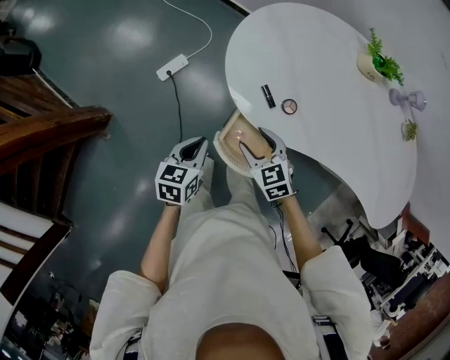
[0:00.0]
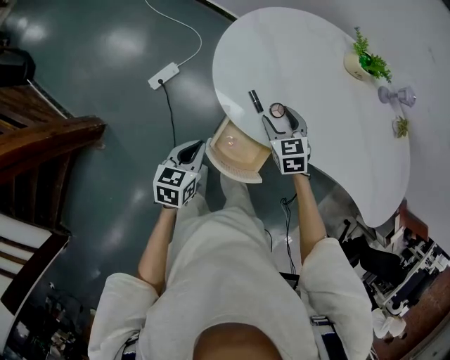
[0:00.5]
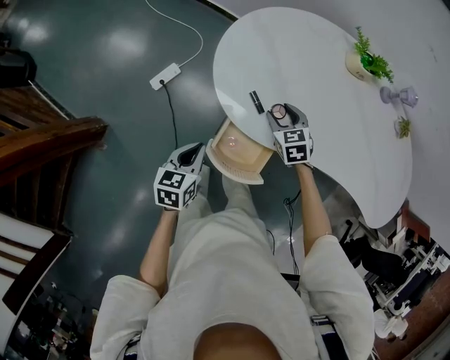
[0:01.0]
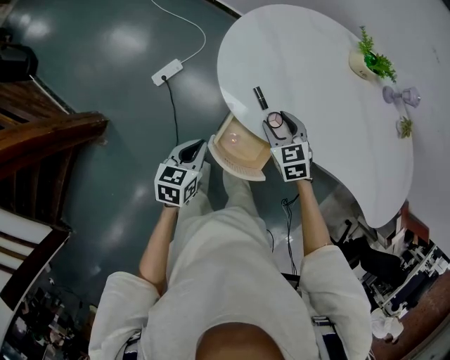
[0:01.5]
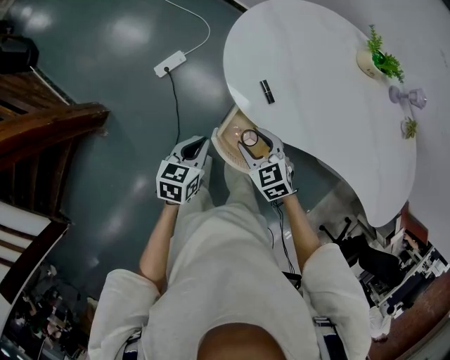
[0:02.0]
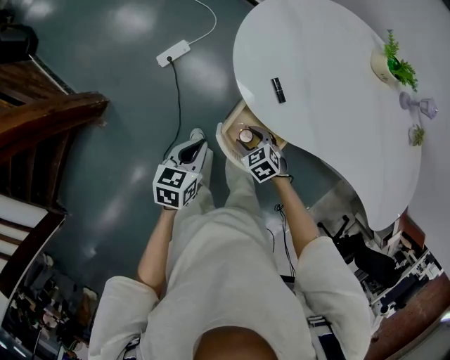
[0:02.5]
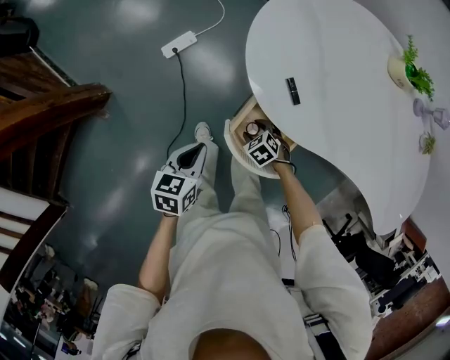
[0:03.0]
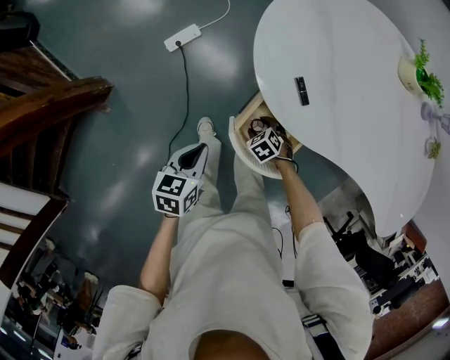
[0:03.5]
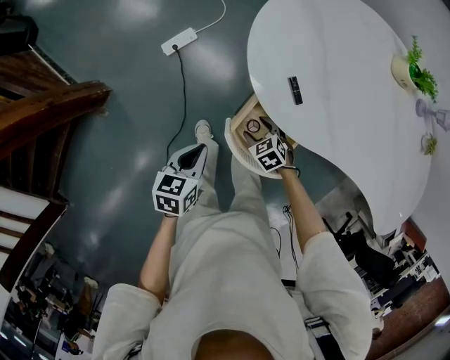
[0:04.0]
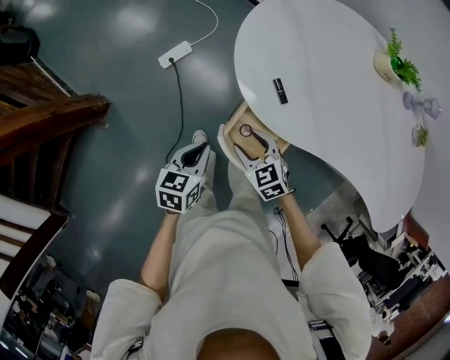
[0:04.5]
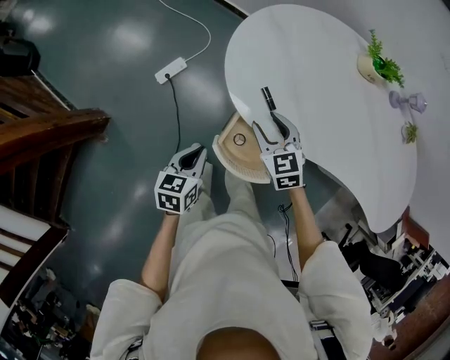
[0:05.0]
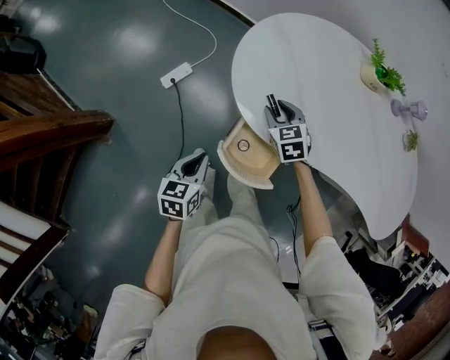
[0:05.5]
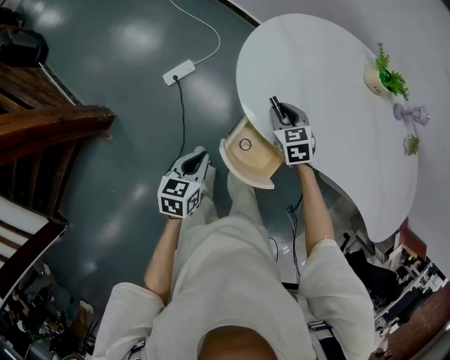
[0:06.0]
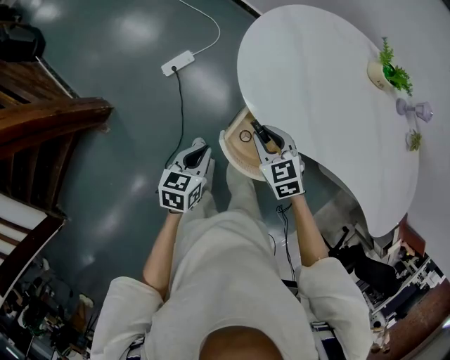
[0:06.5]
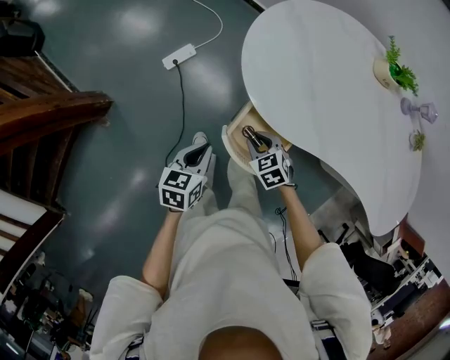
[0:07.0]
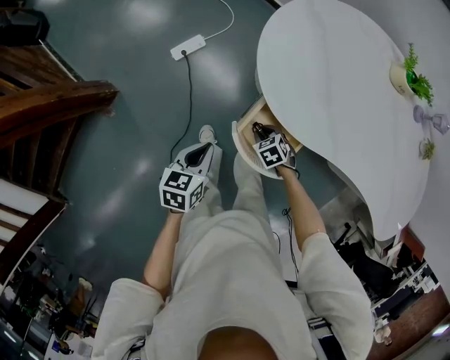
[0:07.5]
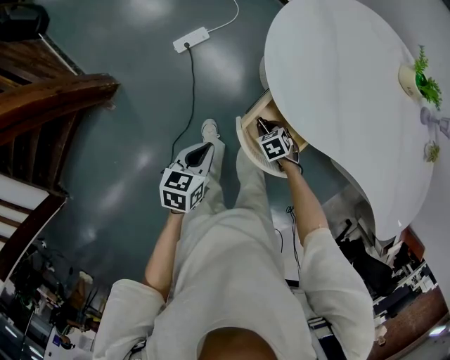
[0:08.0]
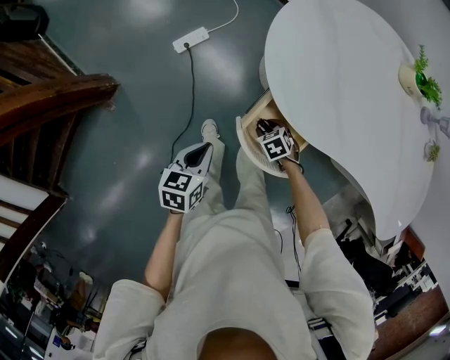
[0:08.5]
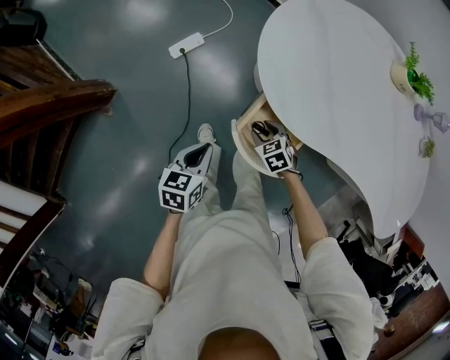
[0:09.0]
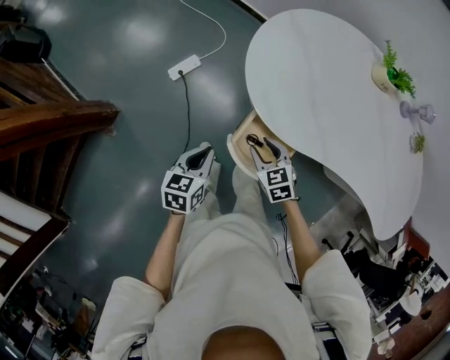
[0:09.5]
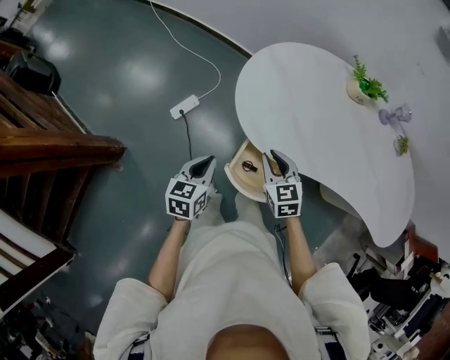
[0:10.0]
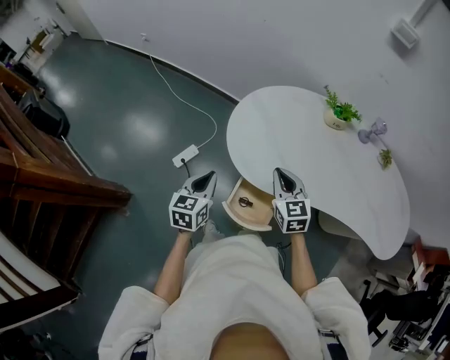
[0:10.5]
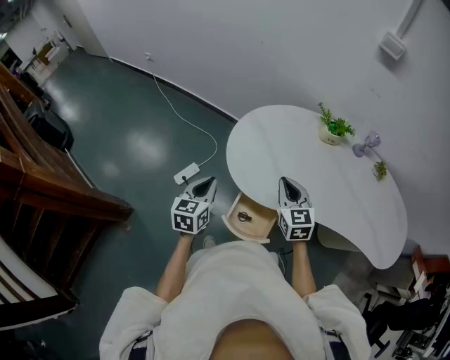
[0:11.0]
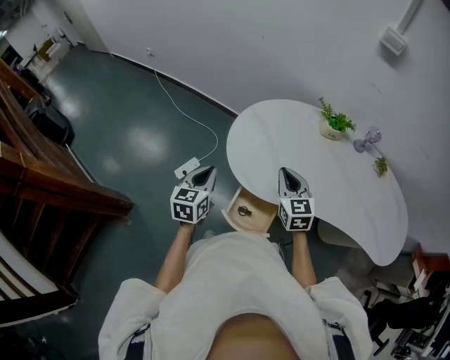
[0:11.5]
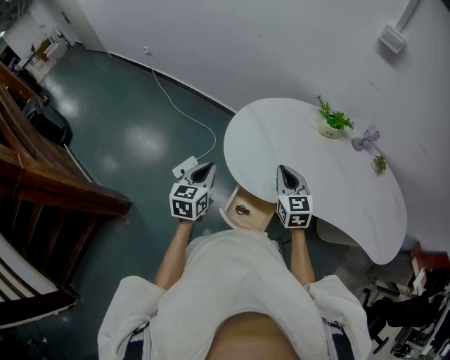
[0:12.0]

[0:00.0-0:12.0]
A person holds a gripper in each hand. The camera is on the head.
0:00.0 to 0:02.0: The right gripper travels forward and back again, about 10 cm each way.
0:02.0 to 0:04.0: The left gripper shifts by about 10 cm. Meanwhile the right gripper travels downward by roughly 20 cm, and rotates roughly 20 degrees.
0:04.0 to 0:06.0: The left gripper moves approximately 5 cm; the right gripper goes roughly 25 cm upward and forward, changes its angle by roughly 20 degrees, and closes.
0:06.0 to 0:08.0: The left gripper moves approximately 5 cm. The right gripper moves downward, approximately 20 cm, and rotates roughly 30 degrees.
0:08.0 to 0:10.0: The right gripper shifts some 30 cm upward, and angles its fingers upward, by roughly 40 degrees, while the left gripper travels upward by roughly 10 cm.
0:10.0 to 0:12.0: The left gripper travels upward and forward by roughly 15 cm; the right gripper heads upward and to the right, covering approximately 15 cm.

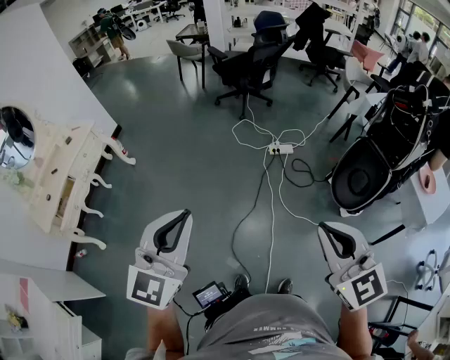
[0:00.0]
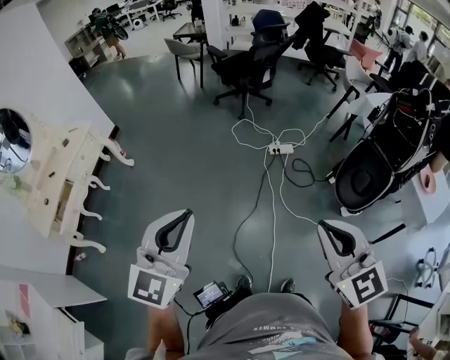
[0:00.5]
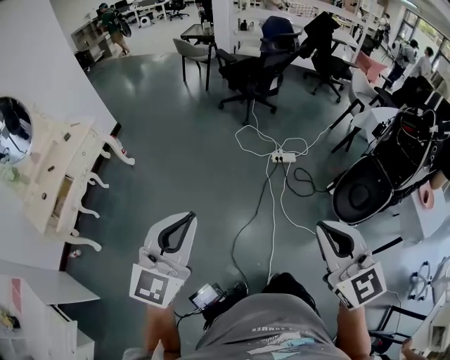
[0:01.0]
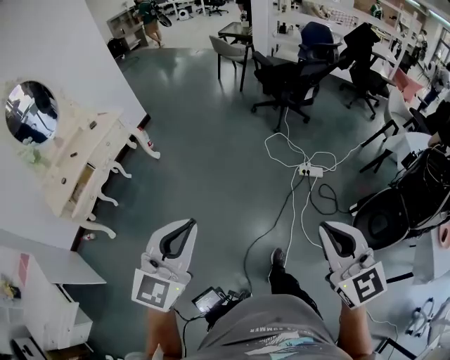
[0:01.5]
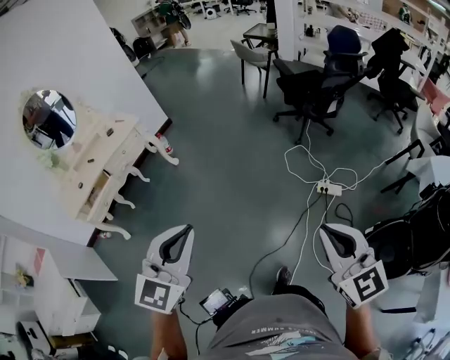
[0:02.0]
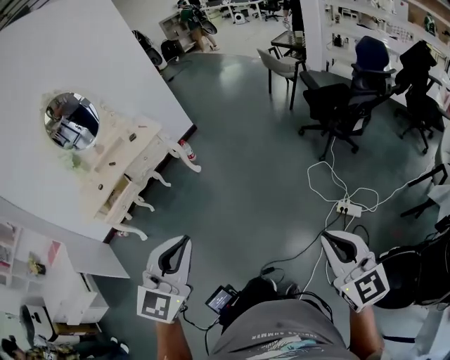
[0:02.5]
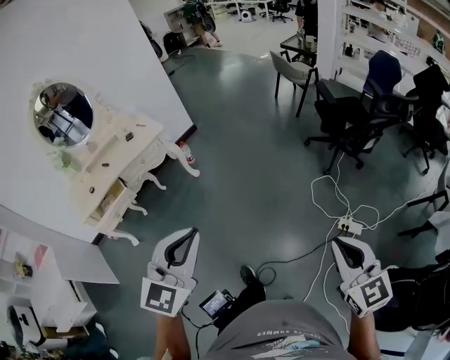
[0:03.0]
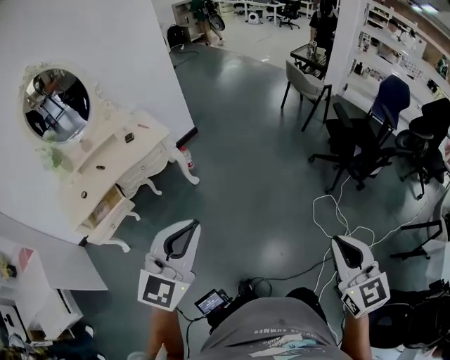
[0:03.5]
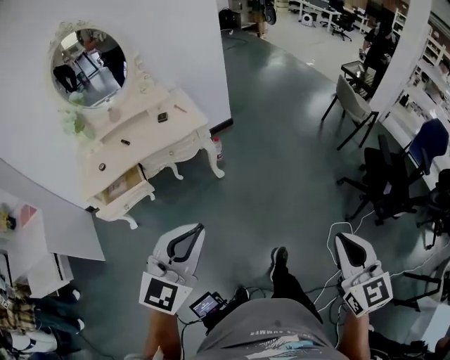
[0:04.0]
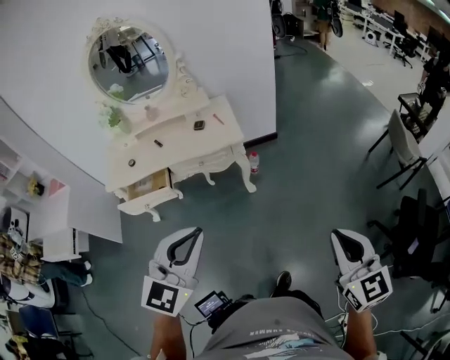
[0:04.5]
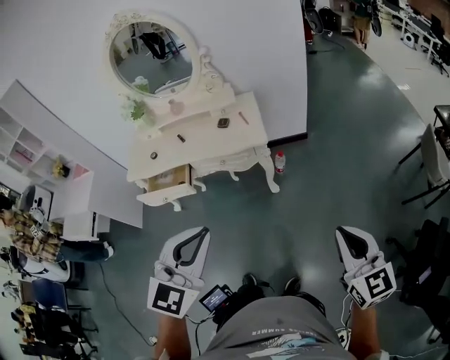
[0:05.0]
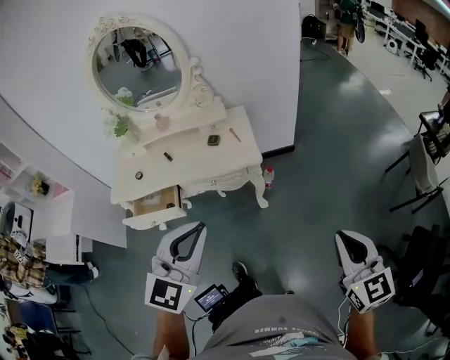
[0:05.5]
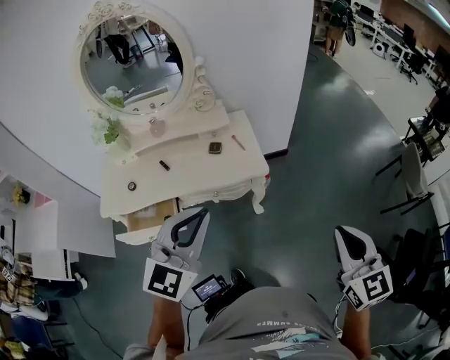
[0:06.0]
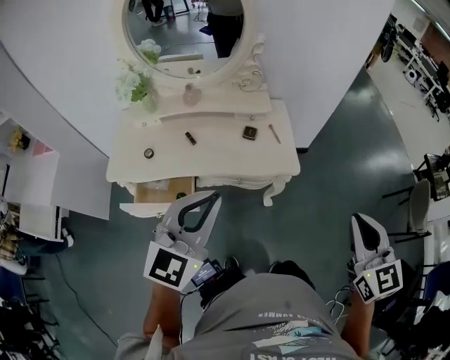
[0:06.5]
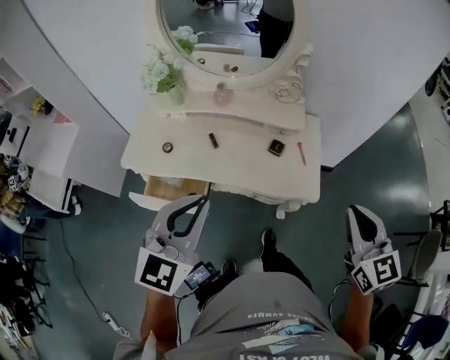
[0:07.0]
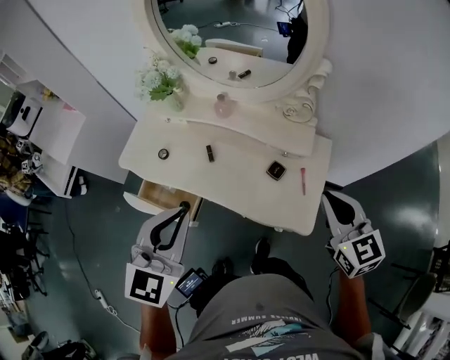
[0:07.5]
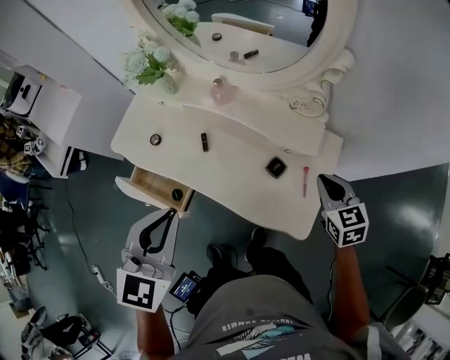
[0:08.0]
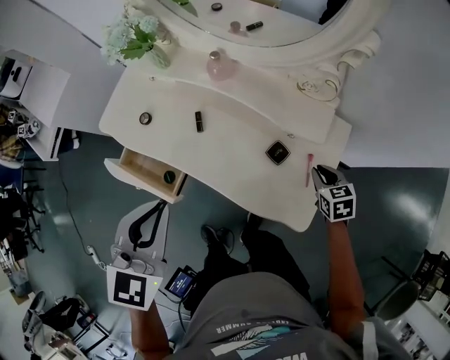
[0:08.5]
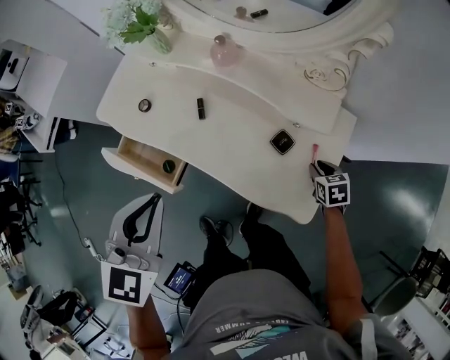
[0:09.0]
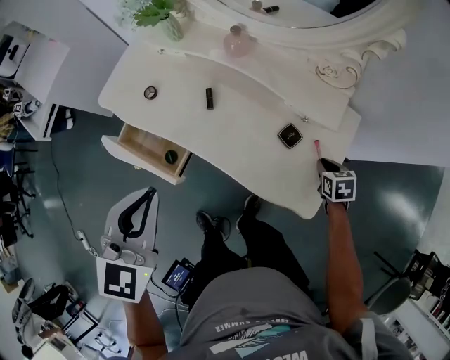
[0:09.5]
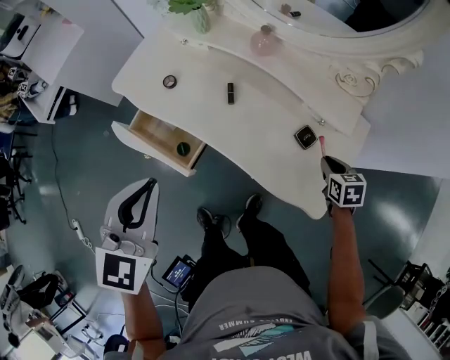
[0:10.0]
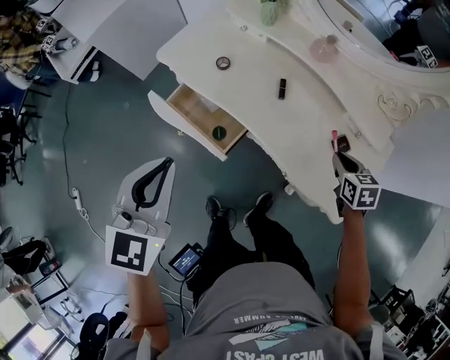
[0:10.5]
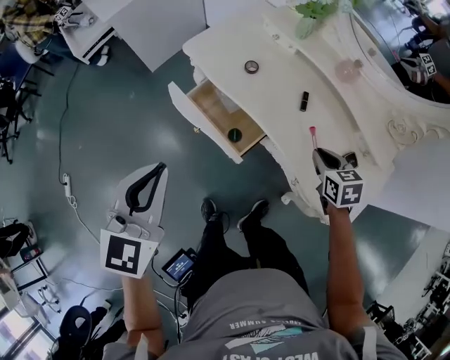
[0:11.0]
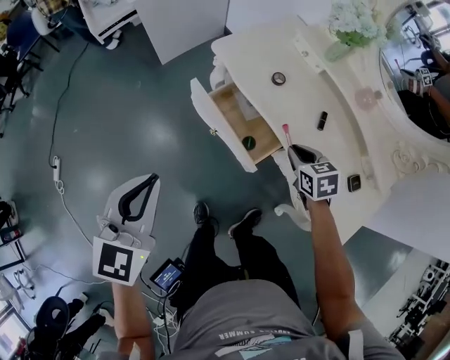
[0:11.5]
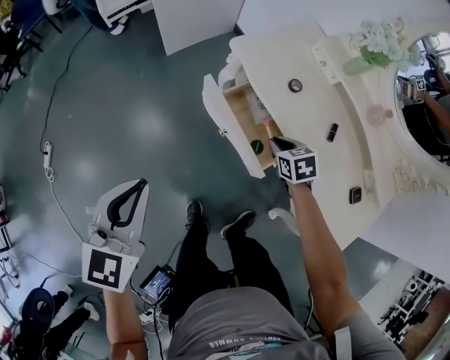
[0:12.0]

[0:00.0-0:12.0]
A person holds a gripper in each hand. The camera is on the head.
0:00.0 to 0:02.0: The grippers both shift forward by some 25 cm. The right gripper turns by about 20 degrees; the left gripper turns by some 20 degrees.
0:02.0 to 0:04.0: The pair of grippers is taken forward and to the left, approximately 50 cm. The left gripper rotates roughly 20 degrees.
0:04.0 to 0:06.0: The two grippers travel together, approximately 40 cm.
0:06.0 to 0:08.0: The left gripper shifts by approximately 30 cm, and turns by roughly 50 degrees, while the right gripper changes place by approximately 70 cm, and rotates approximately 40 degrees.
0:08.0 to 0:10.0: The left gripper is displaced to the left and downward by some 15 cm. Meanwhile the right gripper goes roughly 15 cm downward, and turns by roughly 20 degrees.
0:10.0 to 0:12.0: The left gripper moves some 40 cm, and turns by roughly 30 degrees. Meanwhile the right gripper changes place by approximately 50 cm, and rotates roughly 40 degrees.

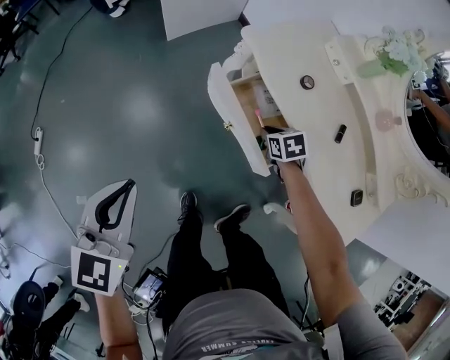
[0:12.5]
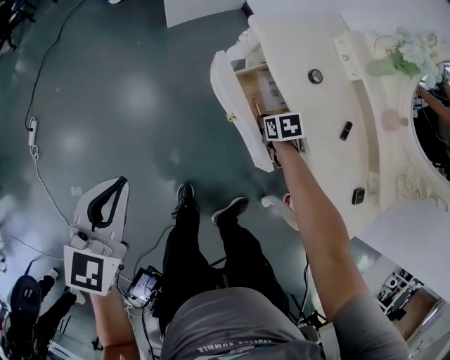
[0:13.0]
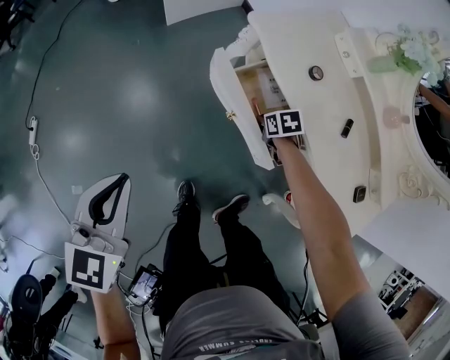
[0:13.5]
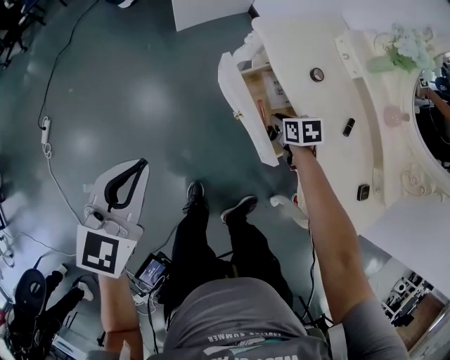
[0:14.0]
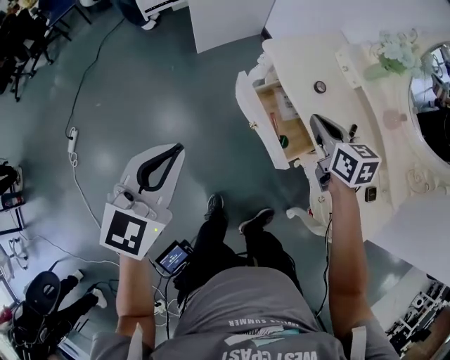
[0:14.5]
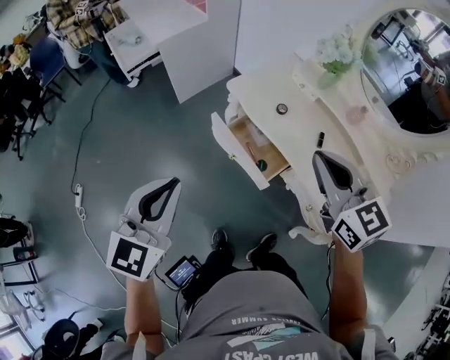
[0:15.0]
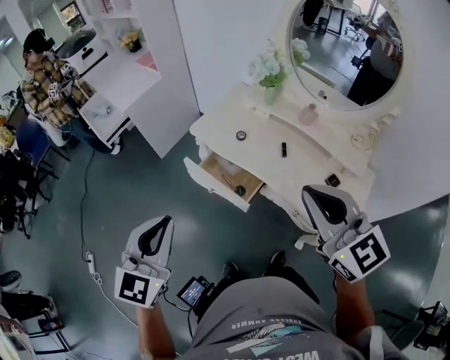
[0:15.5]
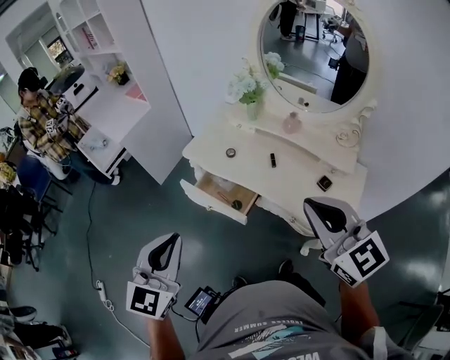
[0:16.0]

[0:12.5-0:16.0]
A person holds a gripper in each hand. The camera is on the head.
0:12.5 to 0:14.5: The left gripper travels upward by some 10 cm; the right gripper moves upward, about 25 cm, and tilts its fingers roughly 30 degrees upward.
0:14.5 to 0:16.0: The left gripper is displaced to the right, upward and backward by roughly 25 cm, and swivels some 30 degrees. The right gripper goes roughly 40 cm upward, backward and to the right, and turns by approximately 40 degrees.
